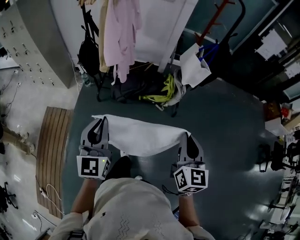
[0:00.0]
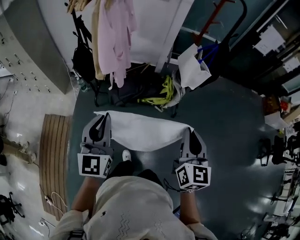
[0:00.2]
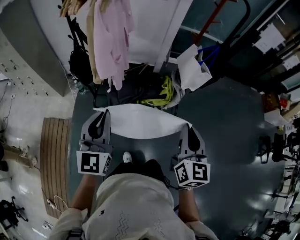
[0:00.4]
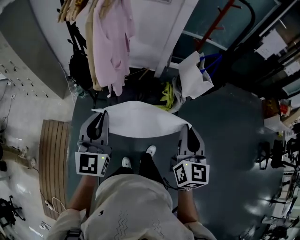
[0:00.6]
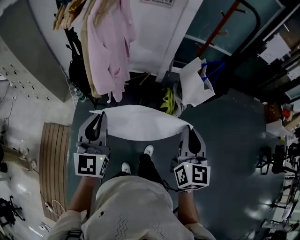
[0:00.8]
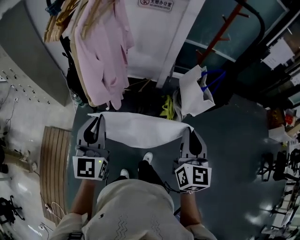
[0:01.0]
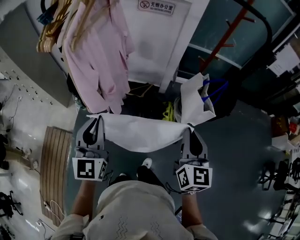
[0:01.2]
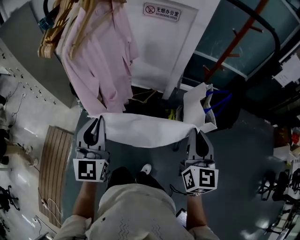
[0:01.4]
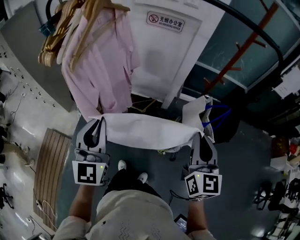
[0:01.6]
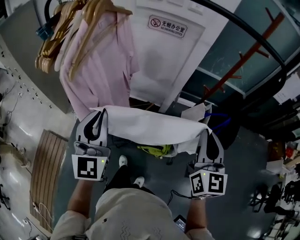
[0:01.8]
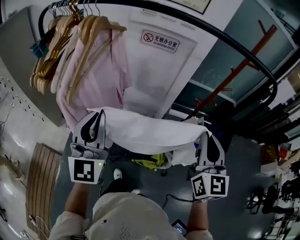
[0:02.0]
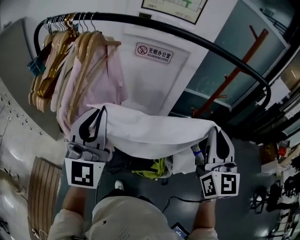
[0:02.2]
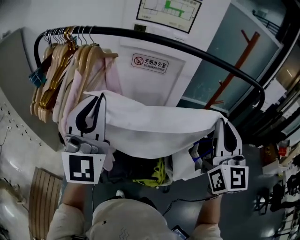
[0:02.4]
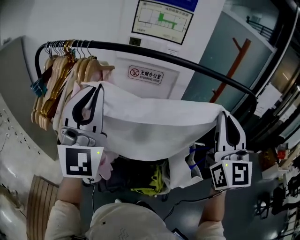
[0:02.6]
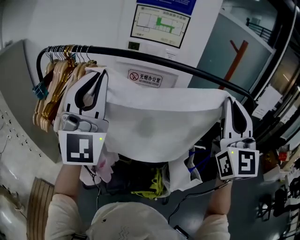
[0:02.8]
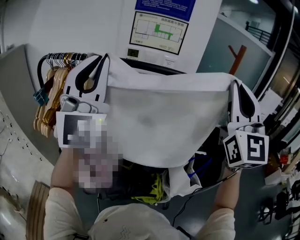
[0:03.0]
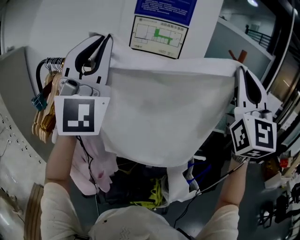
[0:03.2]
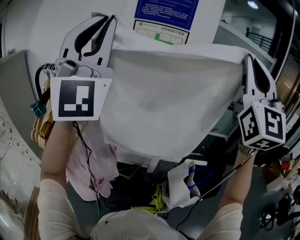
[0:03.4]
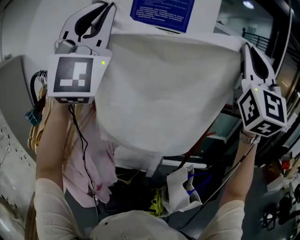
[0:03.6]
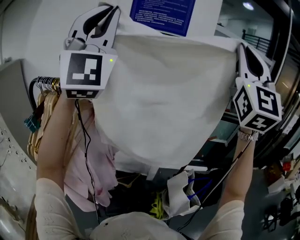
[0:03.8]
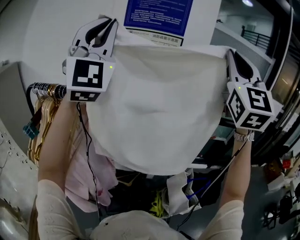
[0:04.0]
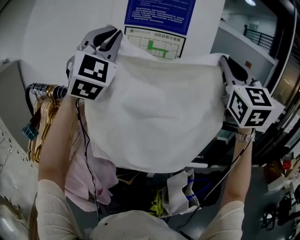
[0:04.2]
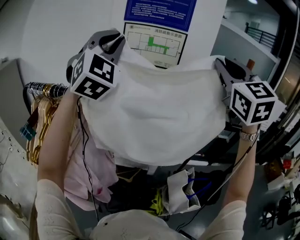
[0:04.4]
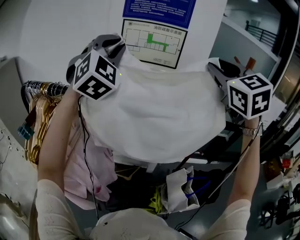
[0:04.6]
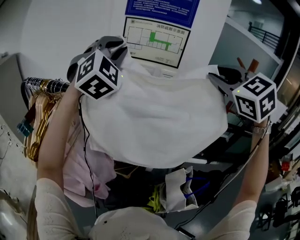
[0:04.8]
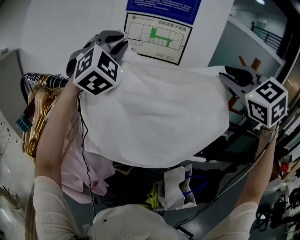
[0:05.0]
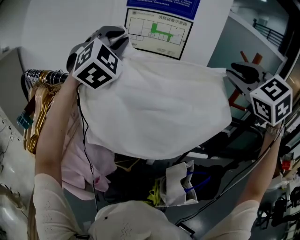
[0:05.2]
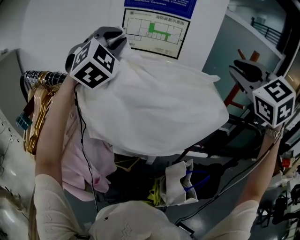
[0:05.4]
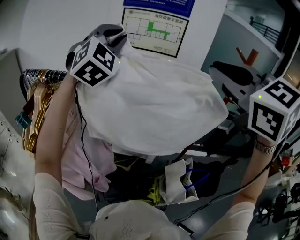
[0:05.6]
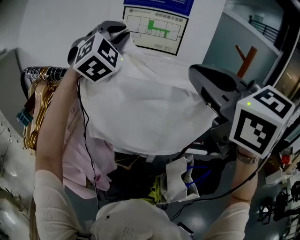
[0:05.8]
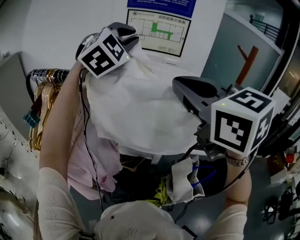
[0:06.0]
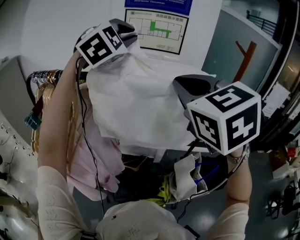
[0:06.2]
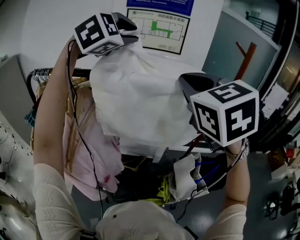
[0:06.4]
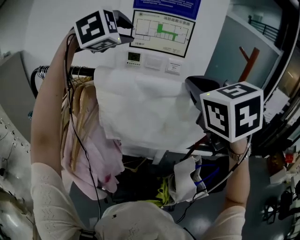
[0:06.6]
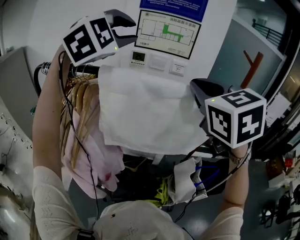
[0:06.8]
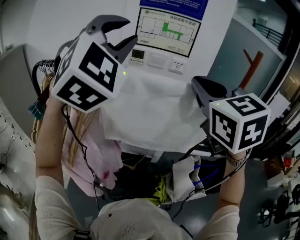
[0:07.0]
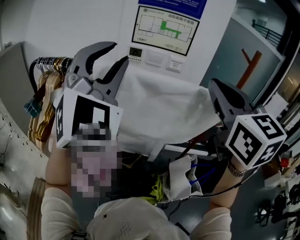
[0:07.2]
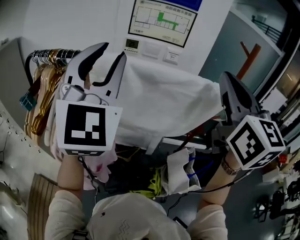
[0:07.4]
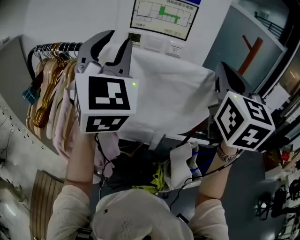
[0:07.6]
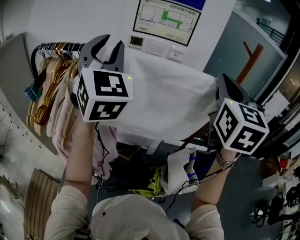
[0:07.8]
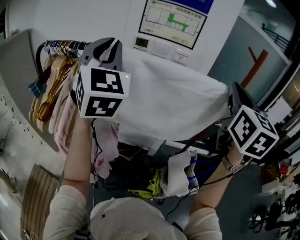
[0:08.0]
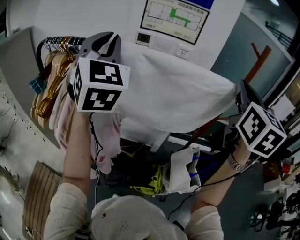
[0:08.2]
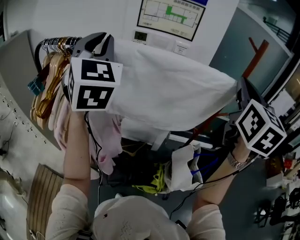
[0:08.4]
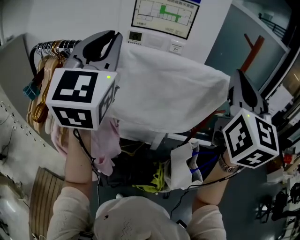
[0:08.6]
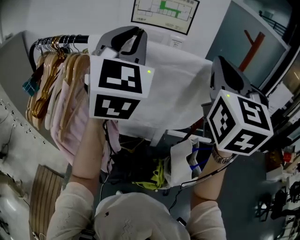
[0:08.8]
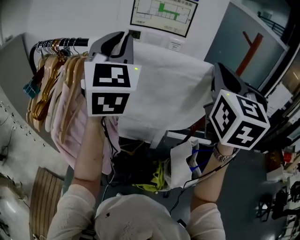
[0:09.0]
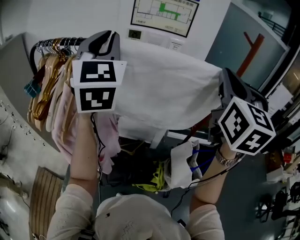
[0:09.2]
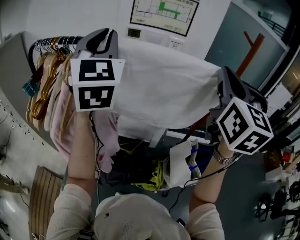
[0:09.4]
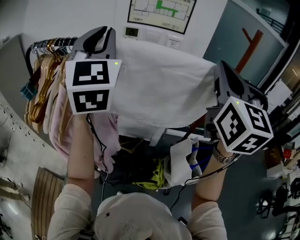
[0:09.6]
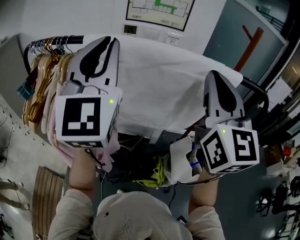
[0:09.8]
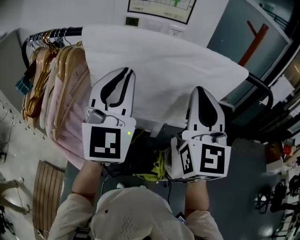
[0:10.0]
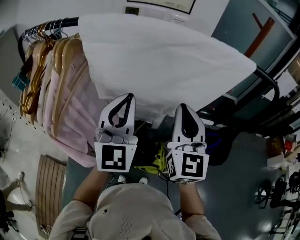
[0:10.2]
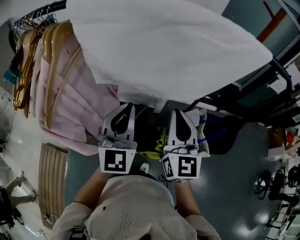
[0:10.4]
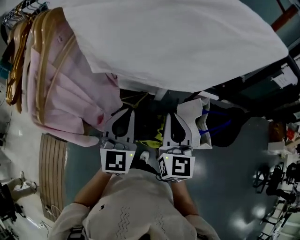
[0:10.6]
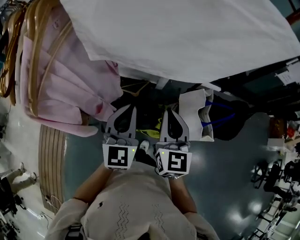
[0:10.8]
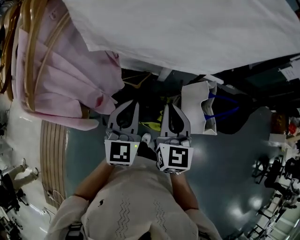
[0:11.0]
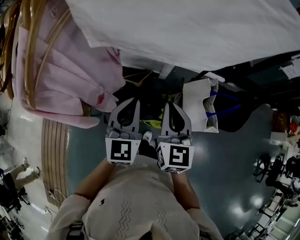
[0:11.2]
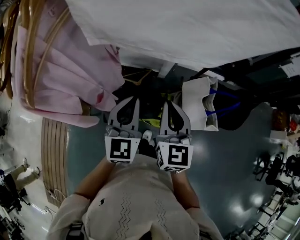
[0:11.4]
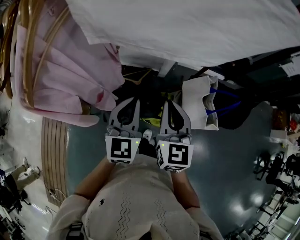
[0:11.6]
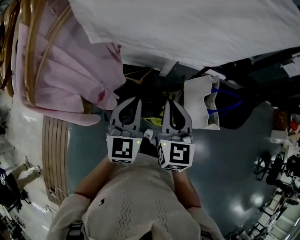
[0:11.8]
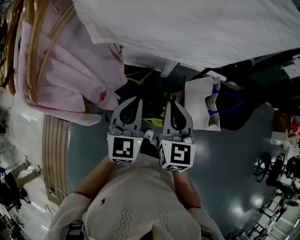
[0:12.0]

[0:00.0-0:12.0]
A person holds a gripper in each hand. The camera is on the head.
0:00.0 to 0:01.6: The two grippers travel together, forward, roughly 50 cm.
0:01.6 to 0:03.0: The left gripper travels upward and forward by roughly 40 cm, and angles its fingers upward, by some 30 degrees; the right gripper shifts approximately 40 cm upward, and tilts its fingers roughly 30 degrees upward.
0:03.0 to 0:04.4: Both grippers travel together forward, some 25 cm. The right gripper rotates roughly 20 degrees, while the left gripper swivels some 30 degrees.
0:04.4 to 0:06.0: The left gripper travels downward by roughly 5 cm, and swivels approximately 20 degrees. The right gripper travels to the left, downward and backward by about 20 cm, and turns by some 30 degrees.
0:06.0 to 0:07.6: The right gripper travels to the right by roughly 10 cm, and changes its angle by roughly 40 degrees. The left gripper shifts roughly 15 cm backward, rotates approximately 40 degrees, and opens up.
0:07.6 to 0:09.0: The right gripper travels to the right and back again, roughly 10 cm each way, while the left gripper moves about 5 cm to the left and comes back, and closes its fingers.
0:09.0 to 0:10.4: The grippers both shift downward by about 30 cm.
0:10.4 to 0:12.0: Both grippers move downward, roughly 15 cm. The left gripper rotates roughly 20 degrees.

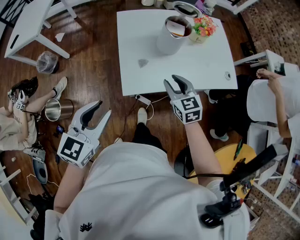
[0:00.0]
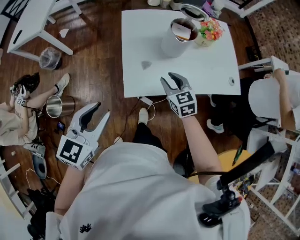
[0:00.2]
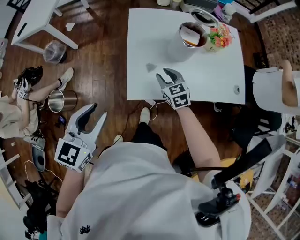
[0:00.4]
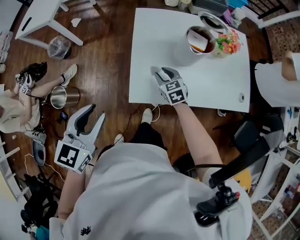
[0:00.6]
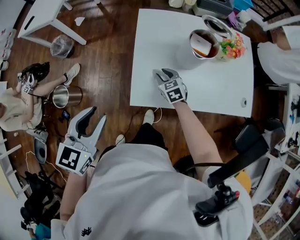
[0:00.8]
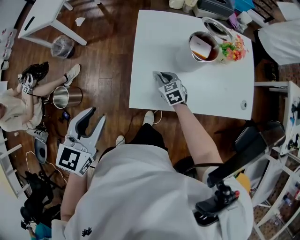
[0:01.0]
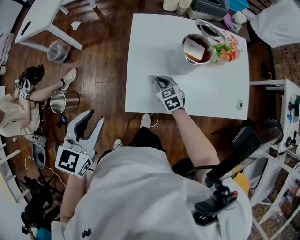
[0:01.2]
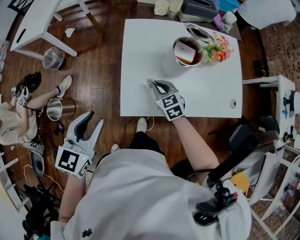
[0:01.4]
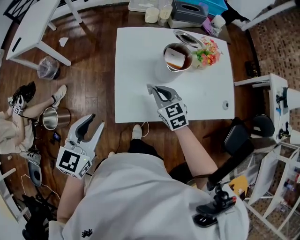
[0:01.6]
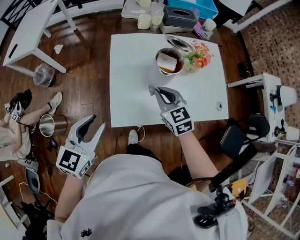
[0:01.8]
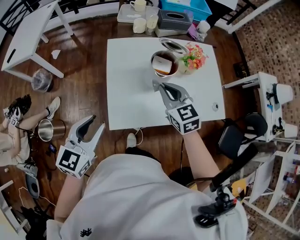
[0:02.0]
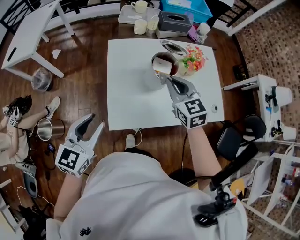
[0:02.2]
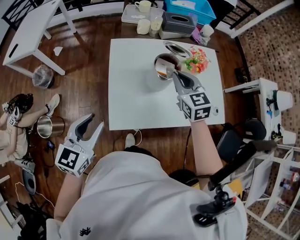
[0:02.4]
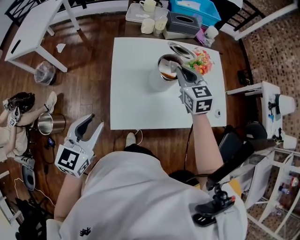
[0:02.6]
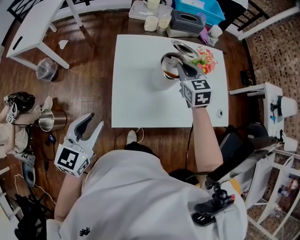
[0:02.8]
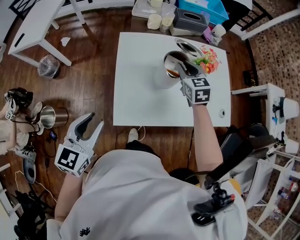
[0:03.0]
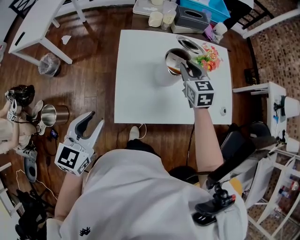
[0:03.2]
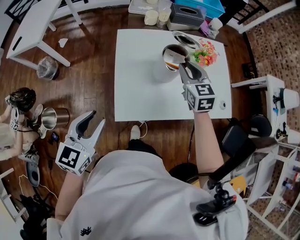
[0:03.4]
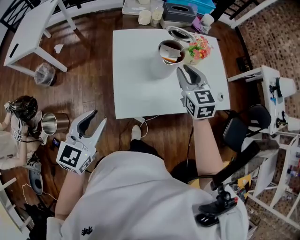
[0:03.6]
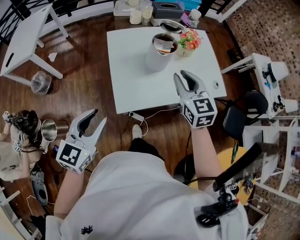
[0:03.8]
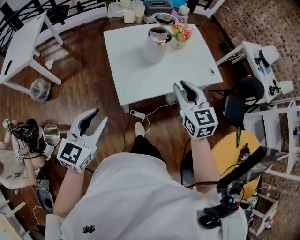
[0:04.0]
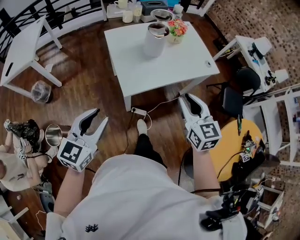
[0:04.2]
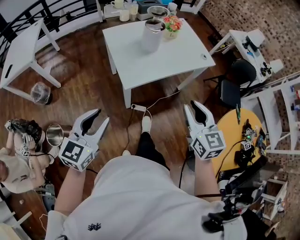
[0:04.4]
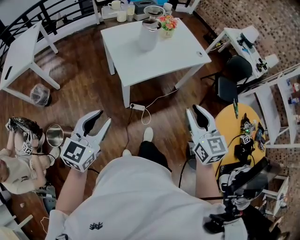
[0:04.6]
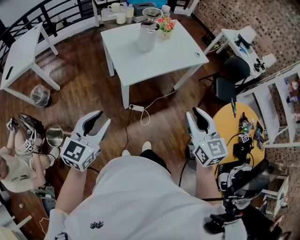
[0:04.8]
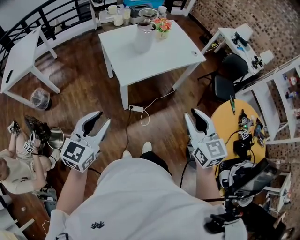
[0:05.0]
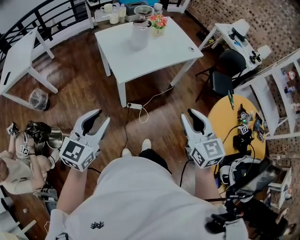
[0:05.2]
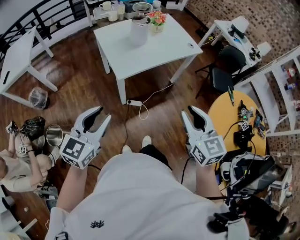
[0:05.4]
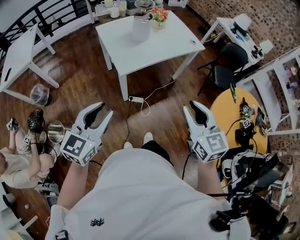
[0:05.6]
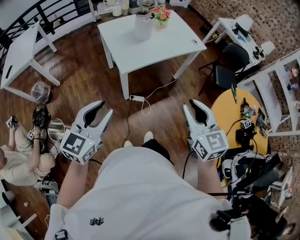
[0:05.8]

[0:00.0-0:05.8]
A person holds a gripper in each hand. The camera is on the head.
0:00.0 to 0:01.4: The right gripper shifts about 15 cm forward and downward, and closes up, while the left gripper heads forward, covering approximately 10 cm.
0:01.4 to 0:02.8: The right gripper moves upward, forward and to the right, about 25 cm.
0:02.8 to 0:04.4: The left gripper is displaced backward by approximately 25 cm, and rotates some 30 degrees. Meanwhile the right gripper goes about 50 cm backward, and rotates roughly 30 degrees.
0:04.4 to 0:05.8: The right gripper heads backward, covering approximately 15 cm. Meanwhile the left gripper travels backward by about 10 cm.

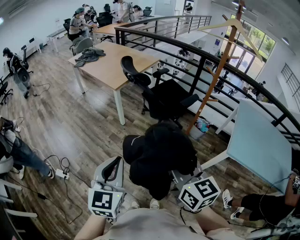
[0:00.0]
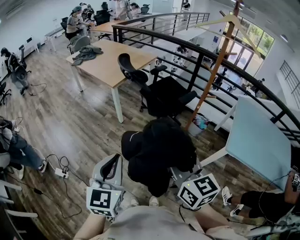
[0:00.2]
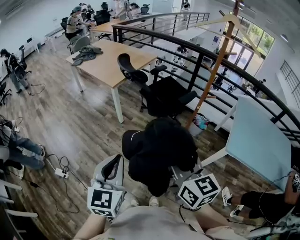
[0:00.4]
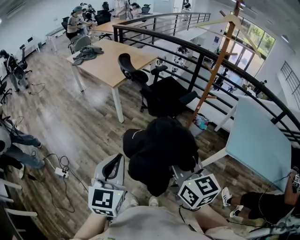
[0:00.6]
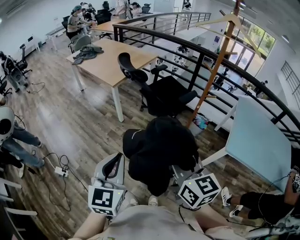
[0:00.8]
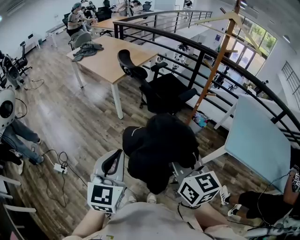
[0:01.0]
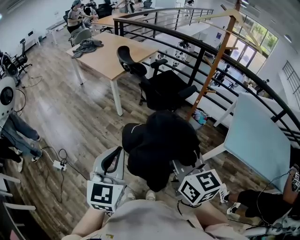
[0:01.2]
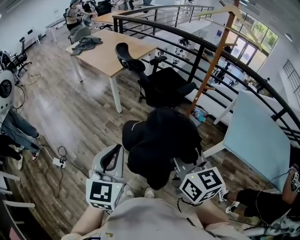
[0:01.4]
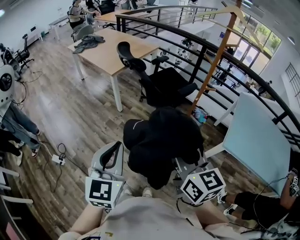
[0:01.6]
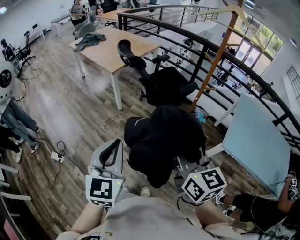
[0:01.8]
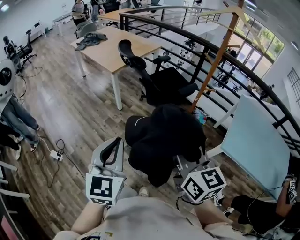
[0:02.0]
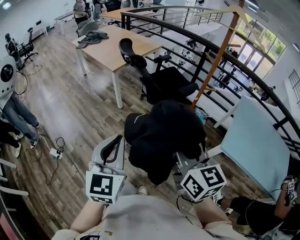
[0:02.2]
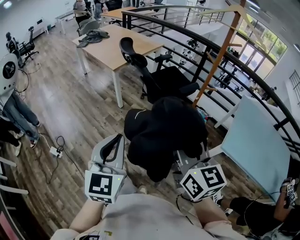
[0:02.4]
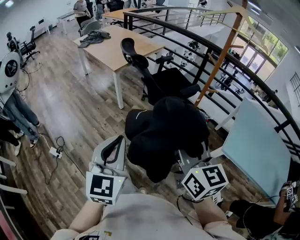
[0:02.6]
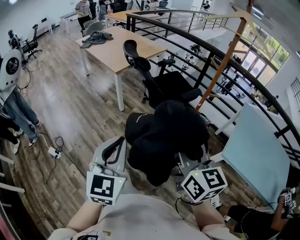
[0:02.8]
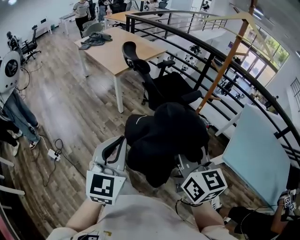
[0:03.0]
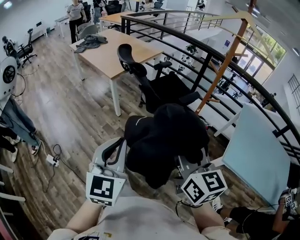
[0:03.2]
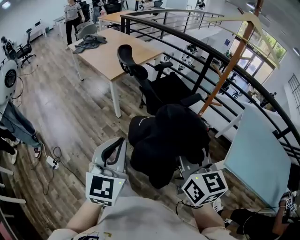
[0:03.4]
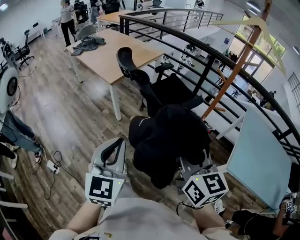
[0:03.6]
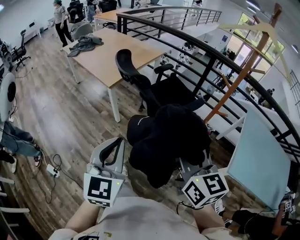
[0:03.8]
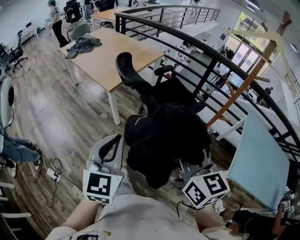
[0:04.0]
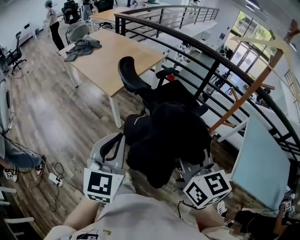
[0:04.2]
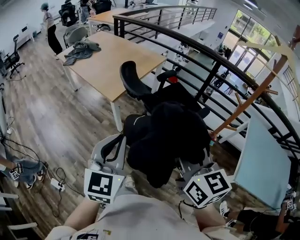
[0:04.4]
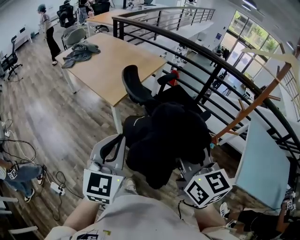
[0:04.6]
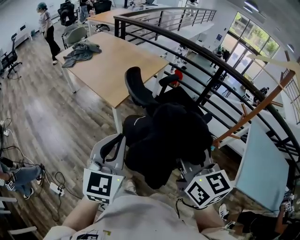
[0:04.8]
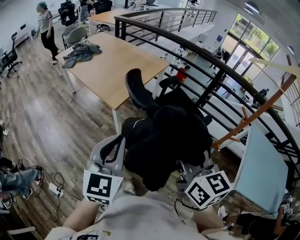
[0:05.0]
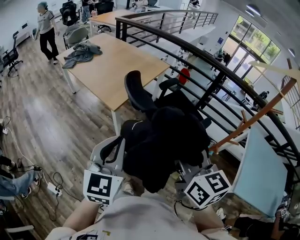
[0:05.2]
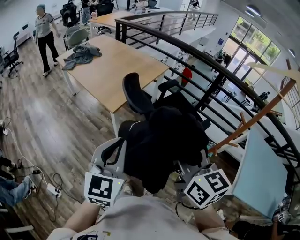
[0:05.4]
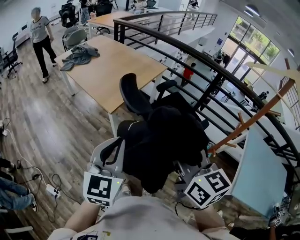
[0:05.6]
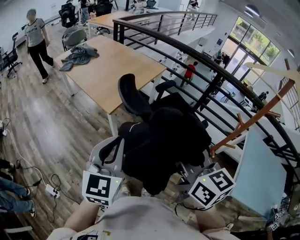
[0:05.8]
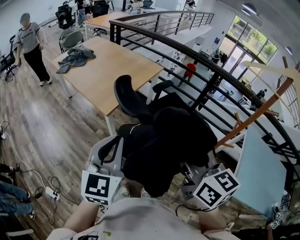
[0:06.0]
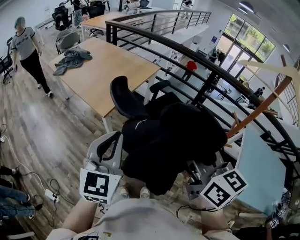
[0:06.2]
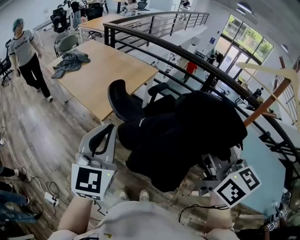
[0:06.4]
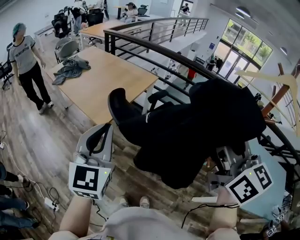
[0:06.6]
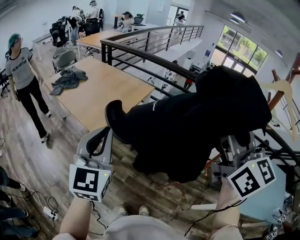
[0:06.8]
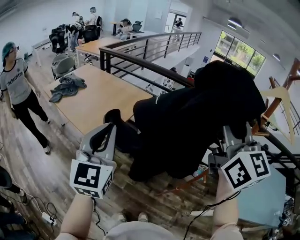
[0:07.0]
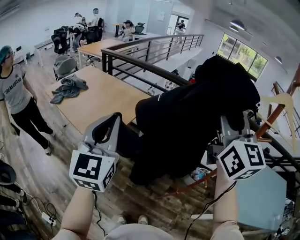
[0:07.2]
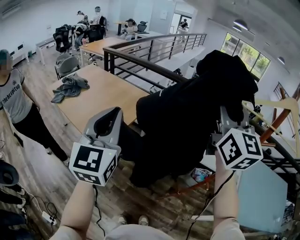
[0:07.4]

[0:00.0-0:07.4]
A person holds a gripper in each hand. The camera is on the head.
0:00.0 to 0:01.4: Both grippers move to the right, approximately 5 cm.
0:01.4 to 0:03.0: Both grippers move to the right, roughly 5 cm.
0:03.0 to 0:04.4: The grippers both shift forward and to the left by about 35 cm.
0:04.4 to 0:06.0: Both grippers travel together forward, approximately 10 cm.
0:06.0 to 0:07.4: The right gripper heads upward, forward and to the right, covering roughly 30 cm, and rotates approximately 40 degrees. Meanwhile the left gripper is displaced forward and upward by roughly 25 cm.
